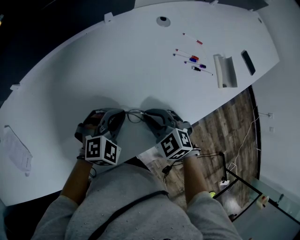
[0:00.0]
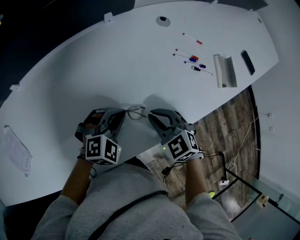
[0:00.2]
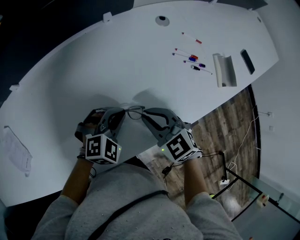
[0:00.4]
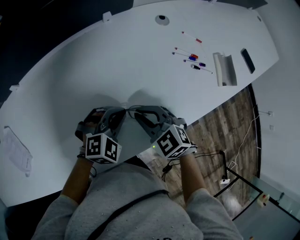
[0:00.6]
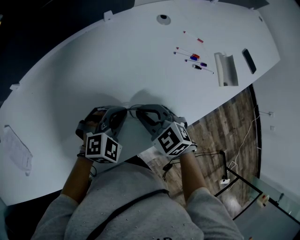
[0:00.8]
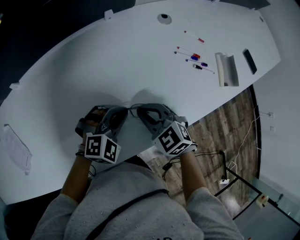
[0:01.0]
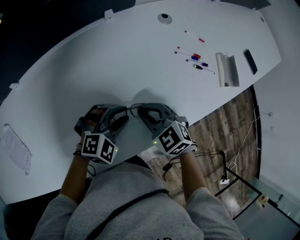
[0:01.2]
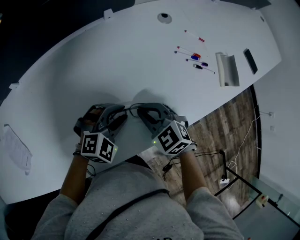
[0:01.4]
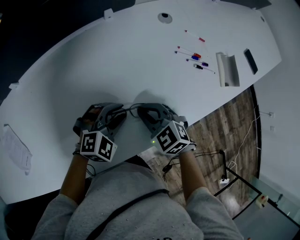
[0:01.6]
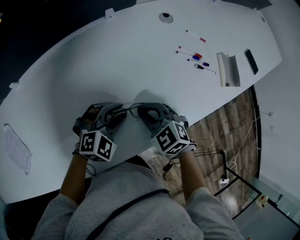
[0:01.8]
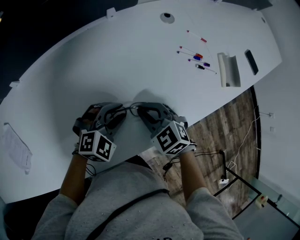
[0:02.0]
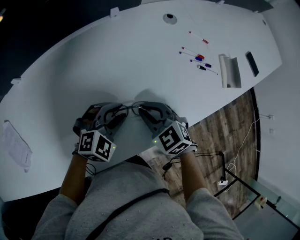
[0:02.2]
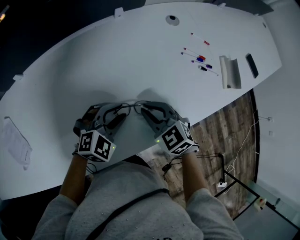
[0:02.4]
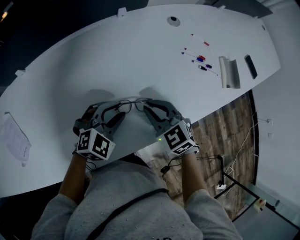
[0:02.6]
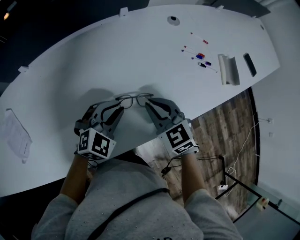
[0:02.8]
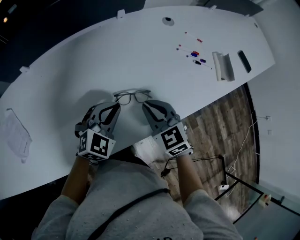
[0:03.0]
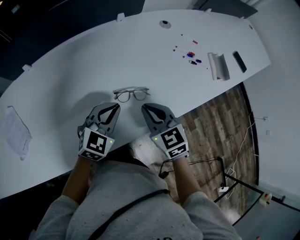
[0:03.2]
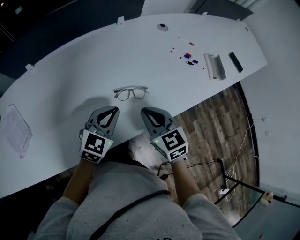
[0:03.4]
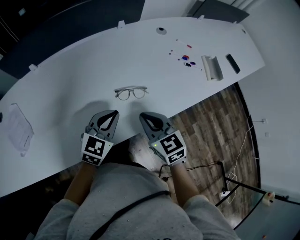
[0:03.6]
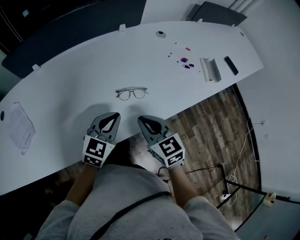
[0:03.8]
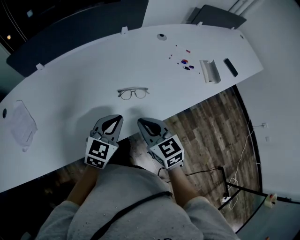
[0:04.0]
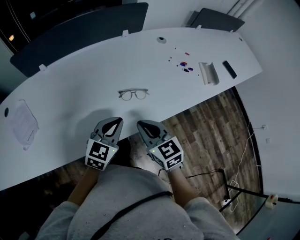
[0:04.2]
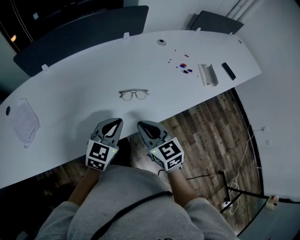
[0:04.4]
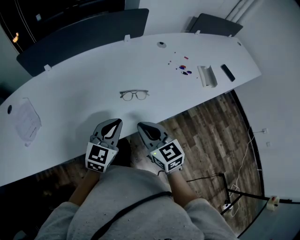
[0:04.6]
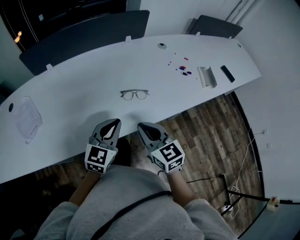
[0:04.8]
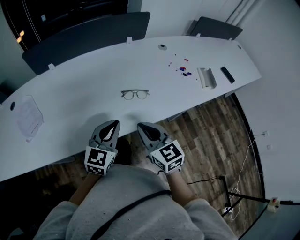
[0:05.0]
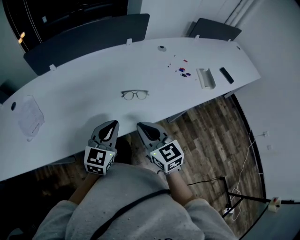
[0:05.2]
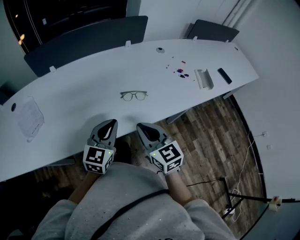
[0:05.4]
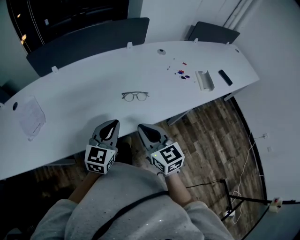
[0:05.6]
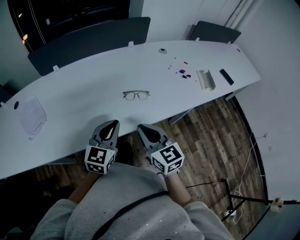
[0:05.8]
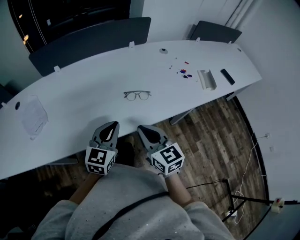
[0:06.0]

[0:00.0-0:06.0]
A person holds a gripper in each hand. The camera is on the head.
0.0 to 1.6 s: The left gripper opens up.
1.6 to 3.0 s: The left gripper heads to the left and upward, covering roughly 5 cm, rotates approximately 20 degrees, and closes. Meanwhile the right gripper shifts roughly 10 cm upward and backward.
3.0 to 4.4 s: The grippers both shift backward and upward by some 15 cm. The left gripper changes its angle by some 30 degrees.
4.4 to 6.0 s: Both grippers move backward, roughly 5 cm.

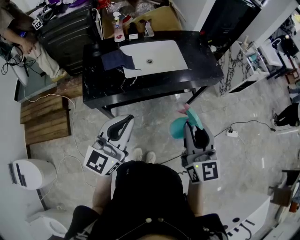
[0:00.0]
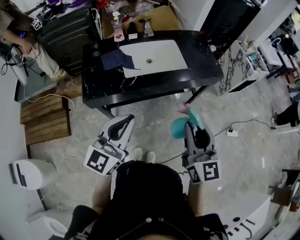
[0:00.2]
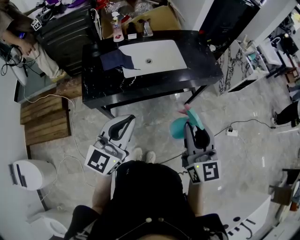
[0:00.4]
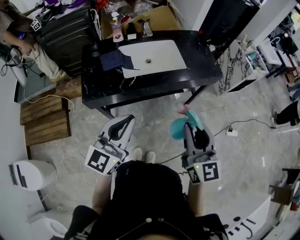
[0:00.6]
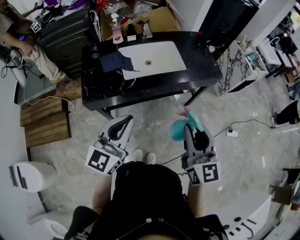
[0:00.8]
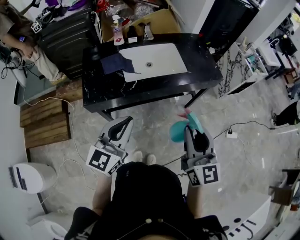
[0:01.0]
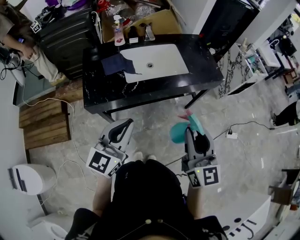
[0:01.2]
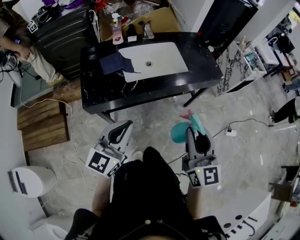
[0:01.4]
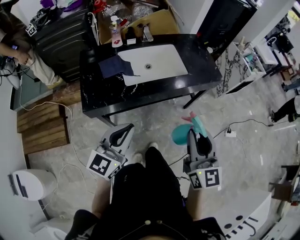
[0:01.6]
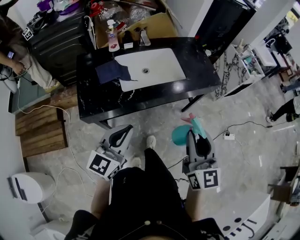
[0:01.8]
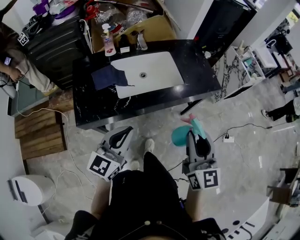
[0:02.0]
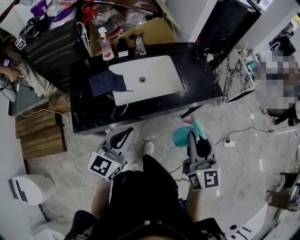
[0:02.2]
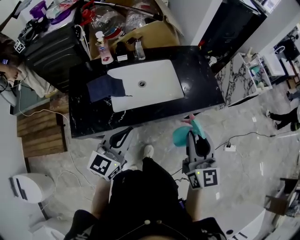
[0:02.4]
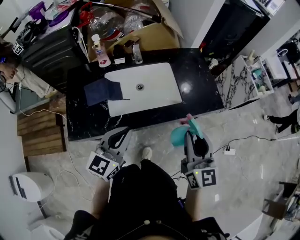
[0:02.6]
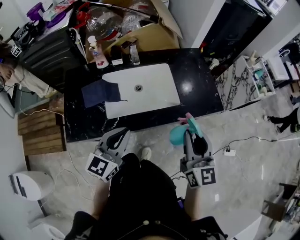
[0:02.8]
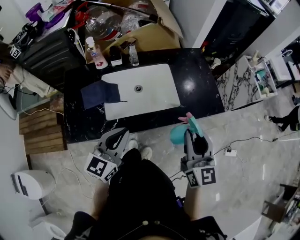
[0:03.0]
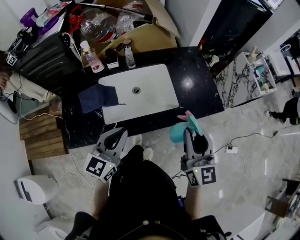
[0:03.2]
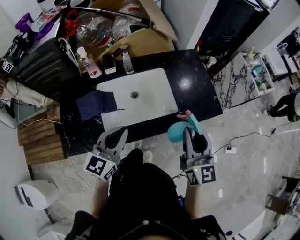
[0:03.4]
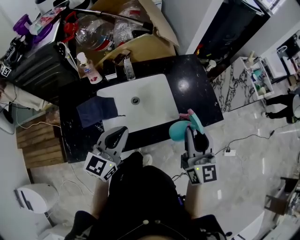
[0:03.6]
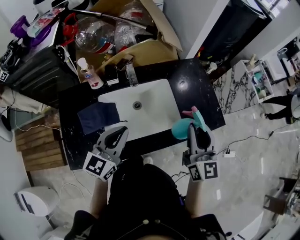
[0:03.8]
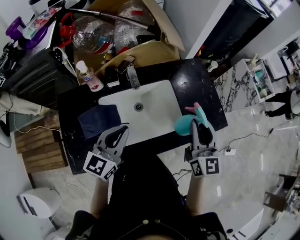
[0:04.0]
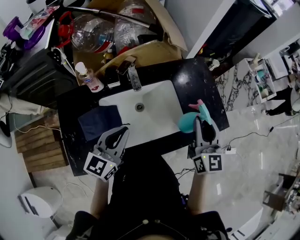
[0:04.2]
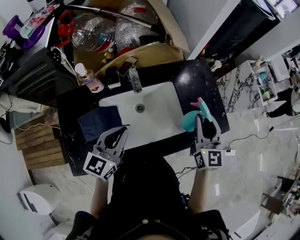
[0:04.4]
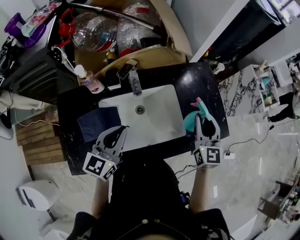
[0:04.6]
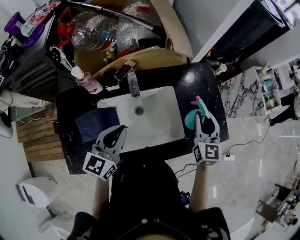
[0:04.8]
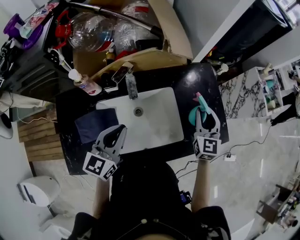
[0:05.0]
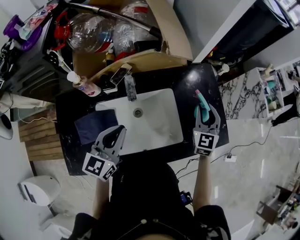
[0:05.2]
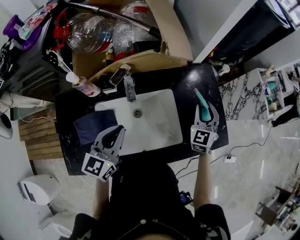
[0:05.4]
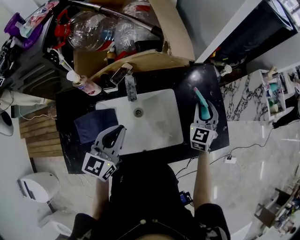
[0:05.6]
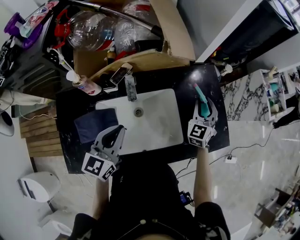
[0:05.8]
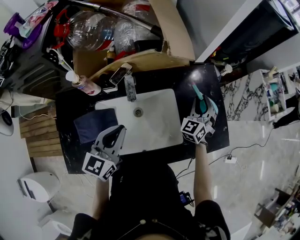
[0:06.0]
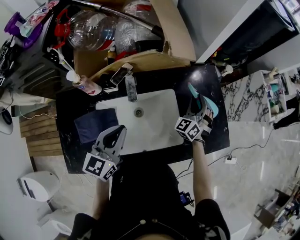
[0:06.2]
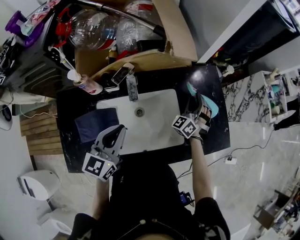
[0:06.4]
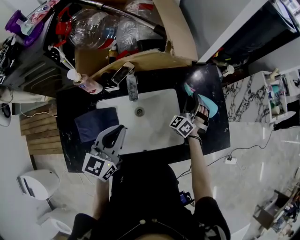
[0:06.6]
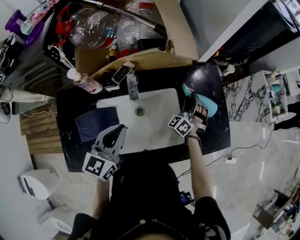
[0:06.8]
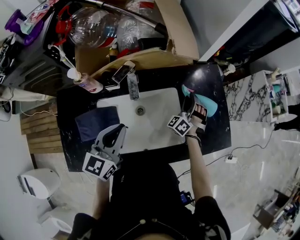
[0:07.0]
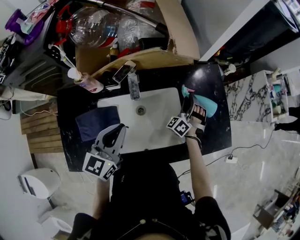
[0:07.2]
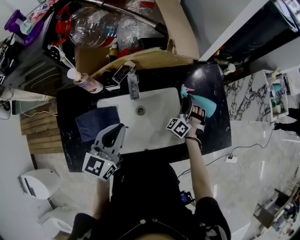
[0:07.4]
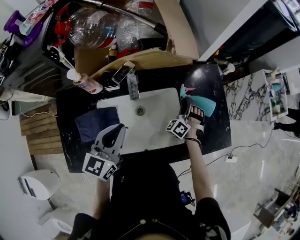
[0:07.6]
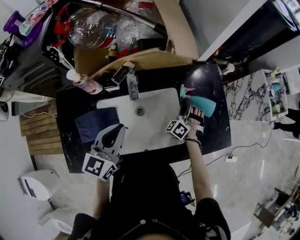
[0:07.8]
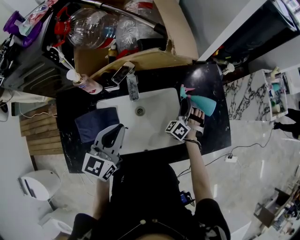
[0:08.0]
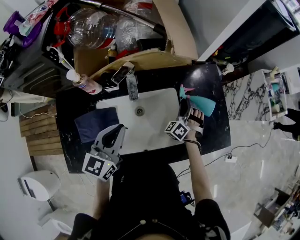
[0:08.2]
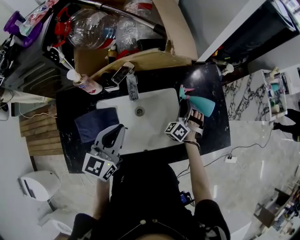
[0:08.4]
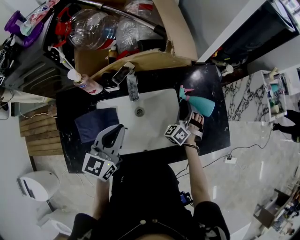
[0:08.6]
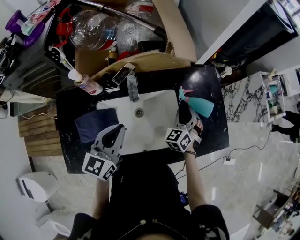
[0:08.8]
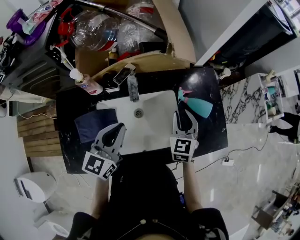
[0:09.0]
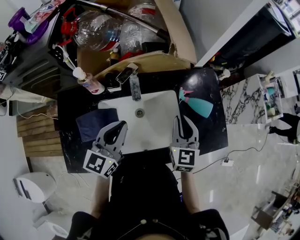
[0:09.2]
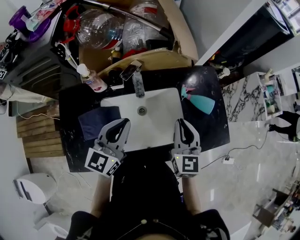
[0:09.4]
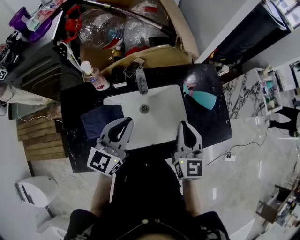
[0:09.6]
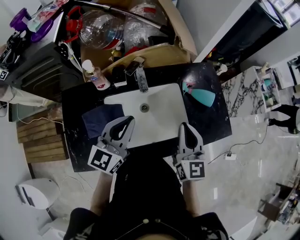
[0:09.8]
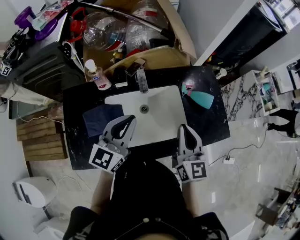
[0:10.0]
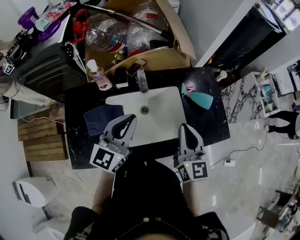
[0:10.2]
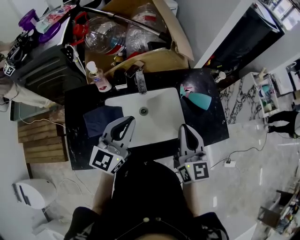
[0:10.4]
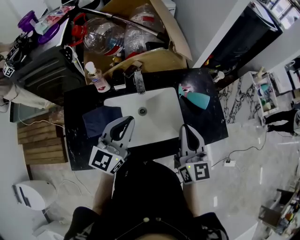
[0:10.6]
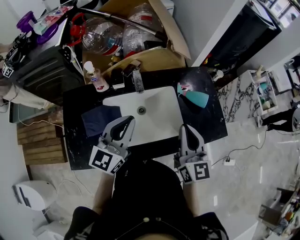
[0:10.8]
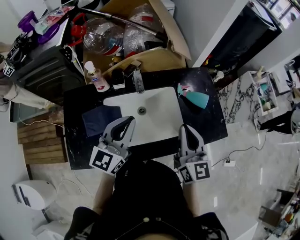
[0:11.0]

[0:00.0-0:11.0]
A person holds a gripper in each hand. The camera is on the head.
0.0 to 1.6 s: The left gripper goes some 5 cm downward.
1.6 to 3.2 s: Both grippers travel together forward, approximately 25 cm.
3.2 to 4.8 s: The right gripper heads forward, covering about 25 cm. Meanwhile the left gripper heads forward and to the left, covering roughly 20 cm.
4.8 to 6.2 s: The right gripper goes roughly 15 cm forward and downward, and rolls counterclockwise, seen from behind, by approximately 50 degrees.
6.2 to 7.8 s: The right gripper heads downward, covering about 10 cm, and changes its angle by some 20 degrees.
7.8 to 9.4 s: The right gripper heads upward and backward, covering roughly 25 cm, rolls clockwise, seen from behind, by some 60 degrees, and opens, then closes once more.
9.4 to 11.0 s: The right gripper heads backward and upward, covering approximately 10 cm, while the left gripper shifts by some 5 cm.

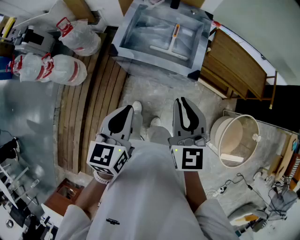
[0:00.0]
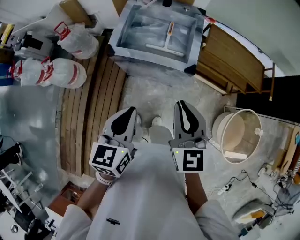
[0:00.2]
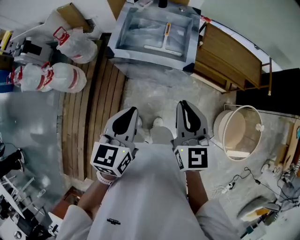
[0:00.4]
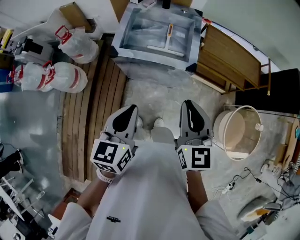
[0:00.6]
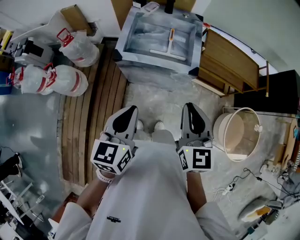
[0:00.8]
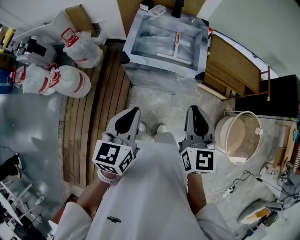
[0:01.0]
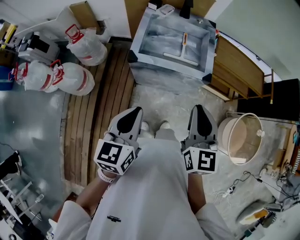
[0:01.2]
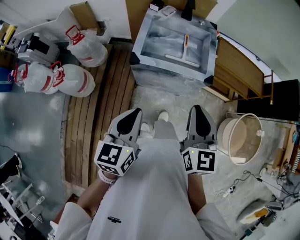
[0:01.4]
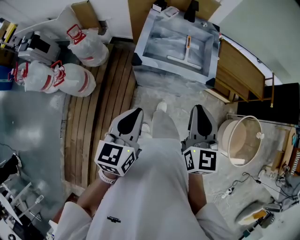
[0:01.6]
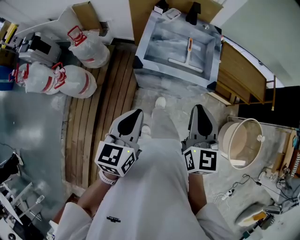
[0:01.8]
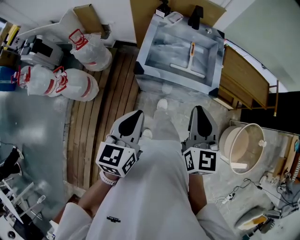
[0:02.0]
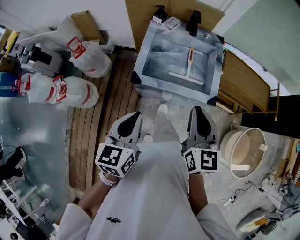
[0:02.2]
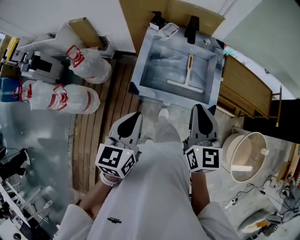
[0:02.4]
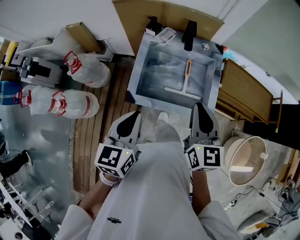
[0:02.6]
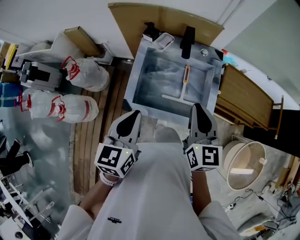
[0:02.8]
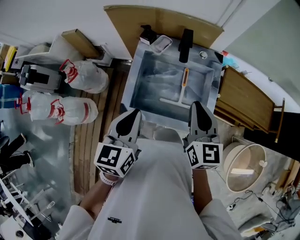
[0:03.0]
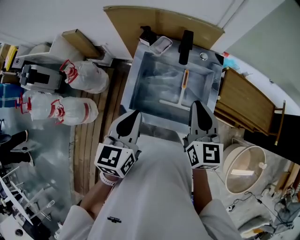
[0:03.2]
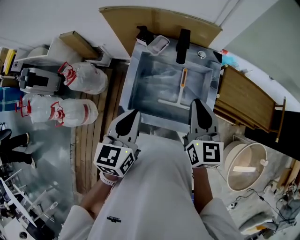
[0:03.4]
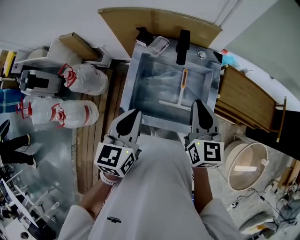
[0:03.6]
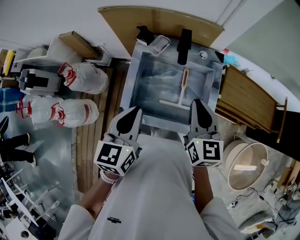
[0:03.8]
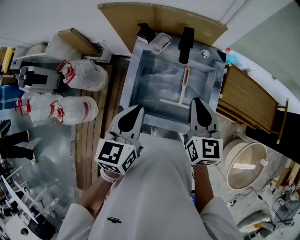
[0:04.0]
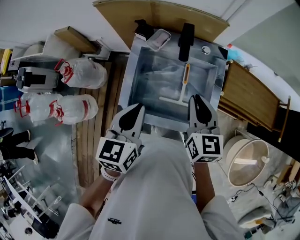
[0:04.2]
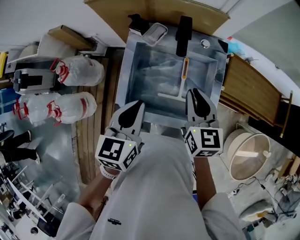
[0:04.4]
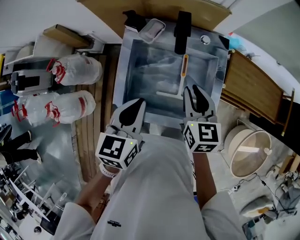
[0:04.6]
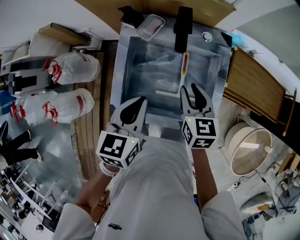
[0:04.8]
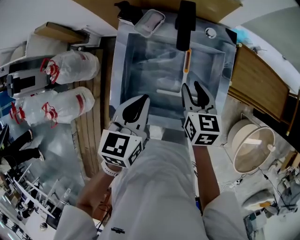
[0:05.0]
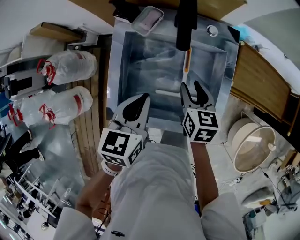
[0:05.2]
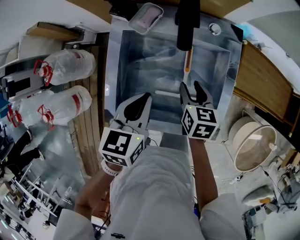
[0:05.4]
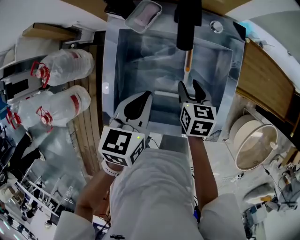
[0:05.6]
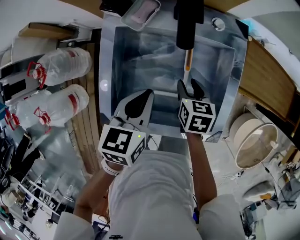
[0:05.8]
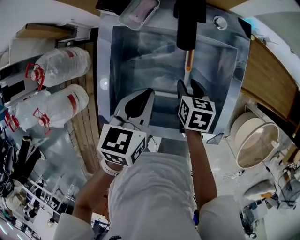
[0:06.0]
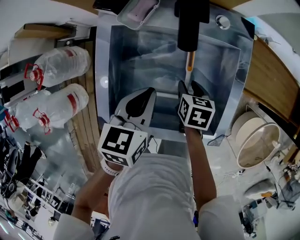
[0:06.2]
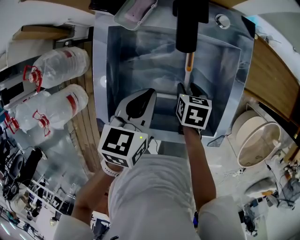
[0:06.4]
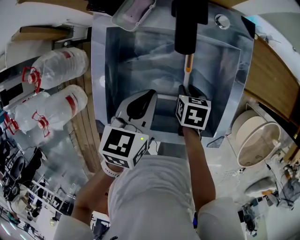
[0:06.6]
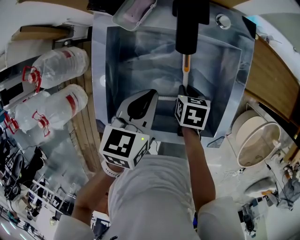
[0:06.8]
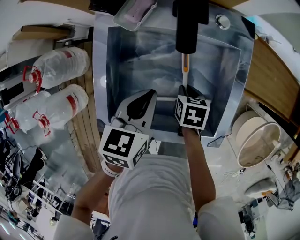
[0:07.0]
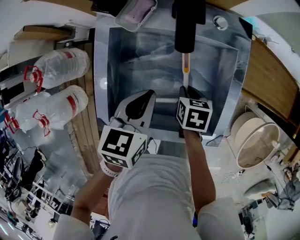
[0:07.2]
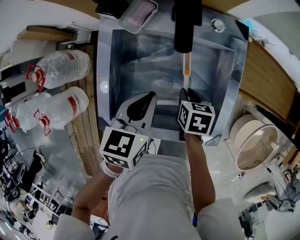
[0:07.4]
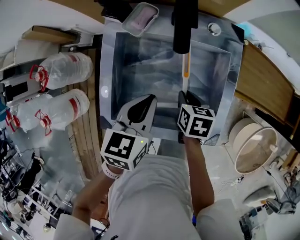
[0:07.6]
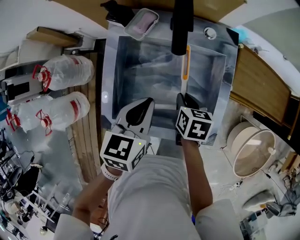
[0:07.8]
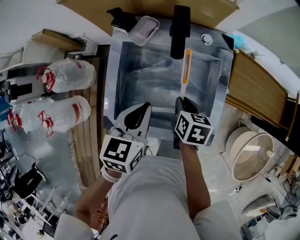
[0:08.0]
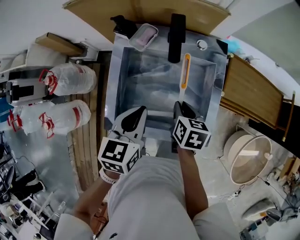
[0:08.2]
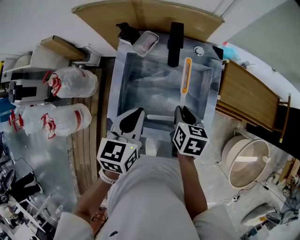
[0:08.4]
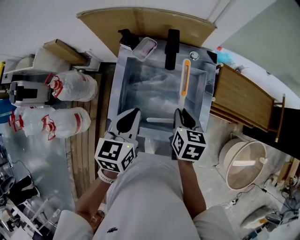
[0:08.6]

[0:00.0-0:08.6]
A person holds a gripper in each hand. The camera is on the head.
0.0 to 1.4 s: The left gripper is displaced to the left by approximately 10 cm. The right gripper goes approximately 5 cm to the left.
1.4 to 2.8 s: Both grippers move forward, roughly 30 cm.
2.8 to 4.4 s: The grippers both shift forward and downward by some 15 cm.
4.4 to 5.8 s: The right gripper goes roughly 25 cm downward, swivels about 30 degrees, and opens; the left gripper travels downward and forward by roughly 15 cm.
5.8 to 7.2 s: The right gripper ends up roughly 5 cm from where it was, and closes its fingers.
7.2 to 8.6 s: Both grippers travel together upward, about 20 cm. The right gripper changes its angle by roughly 20 degrees.
